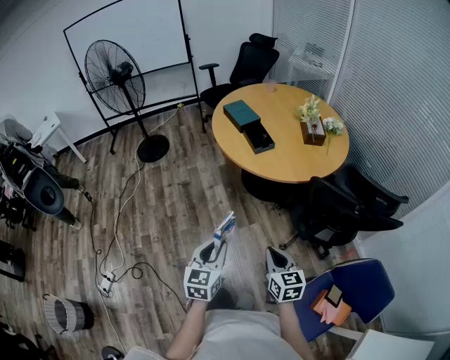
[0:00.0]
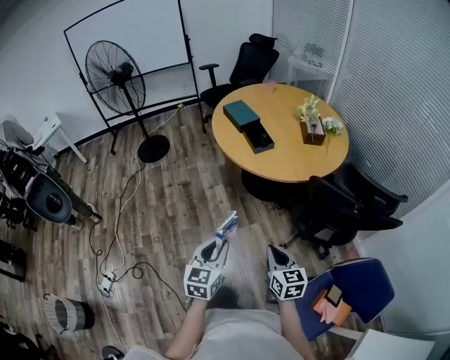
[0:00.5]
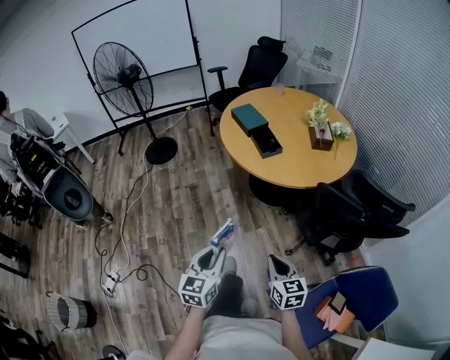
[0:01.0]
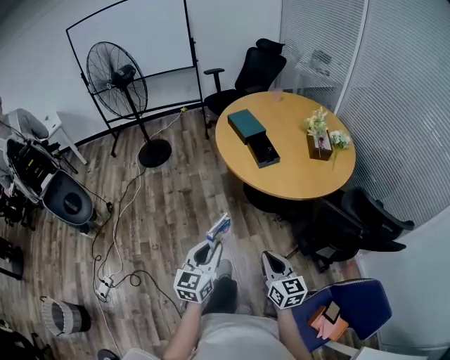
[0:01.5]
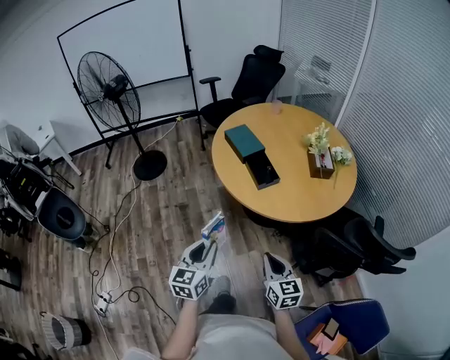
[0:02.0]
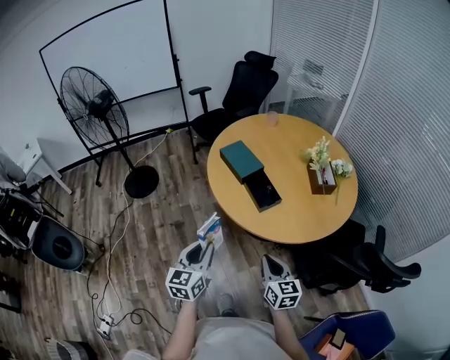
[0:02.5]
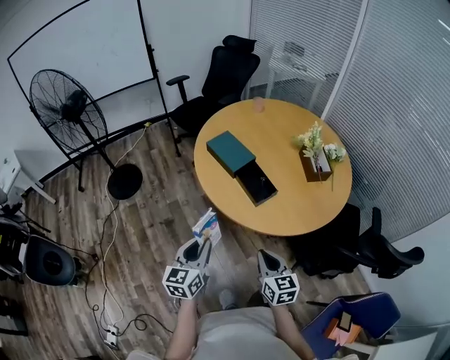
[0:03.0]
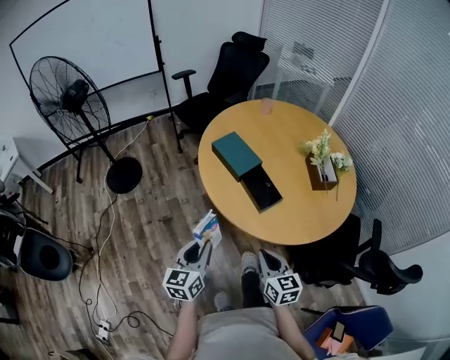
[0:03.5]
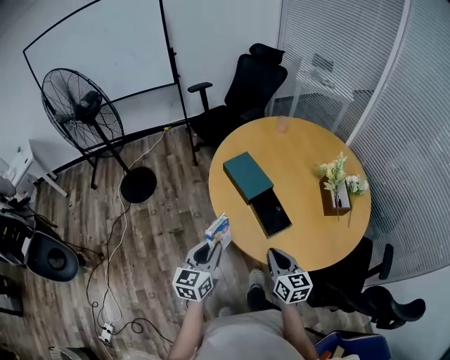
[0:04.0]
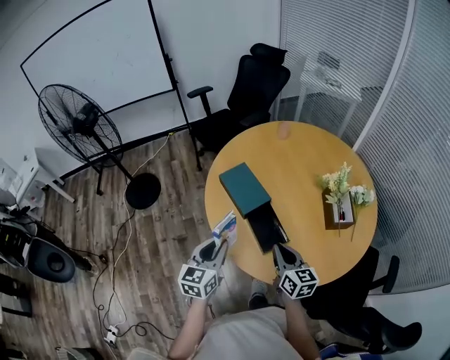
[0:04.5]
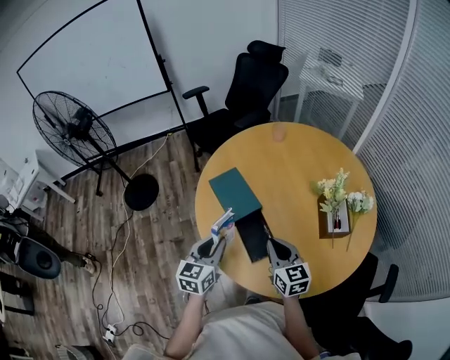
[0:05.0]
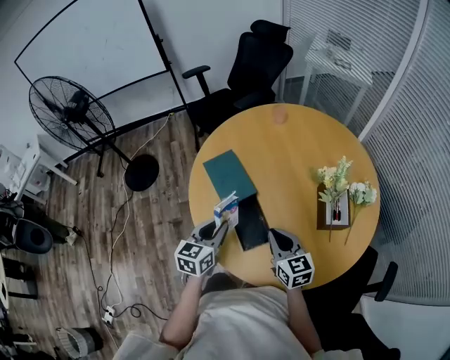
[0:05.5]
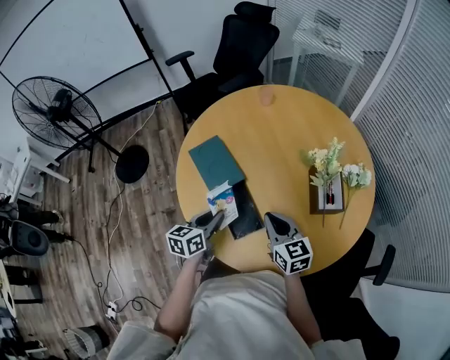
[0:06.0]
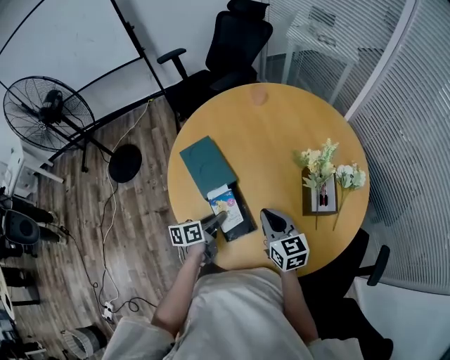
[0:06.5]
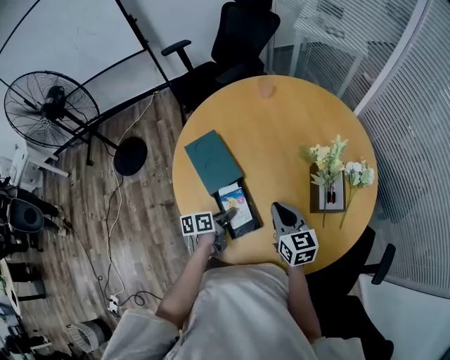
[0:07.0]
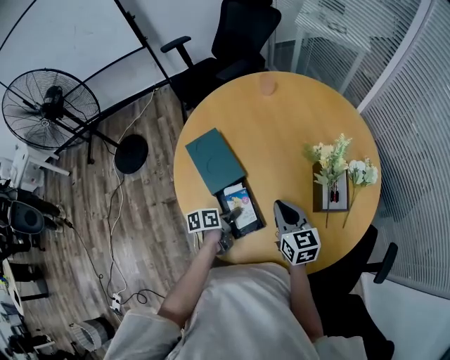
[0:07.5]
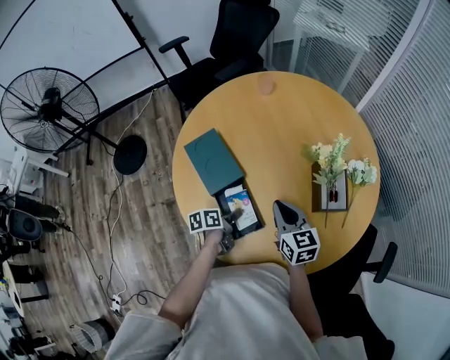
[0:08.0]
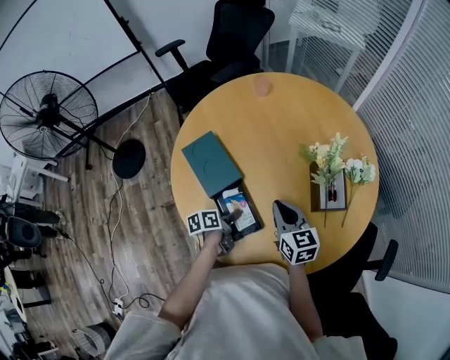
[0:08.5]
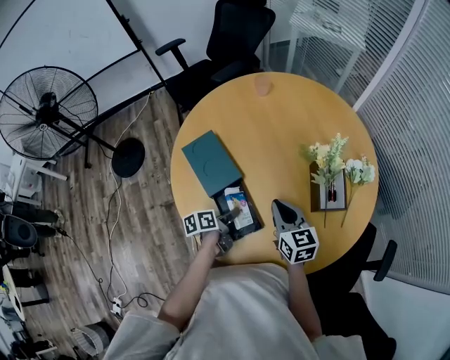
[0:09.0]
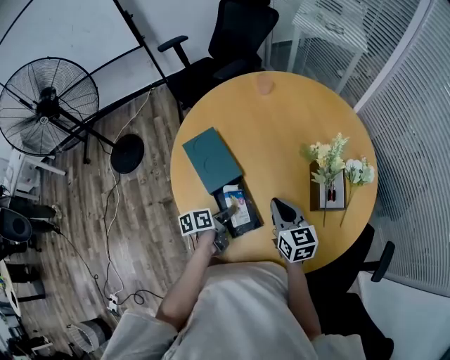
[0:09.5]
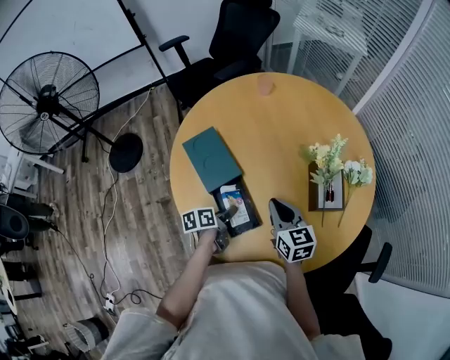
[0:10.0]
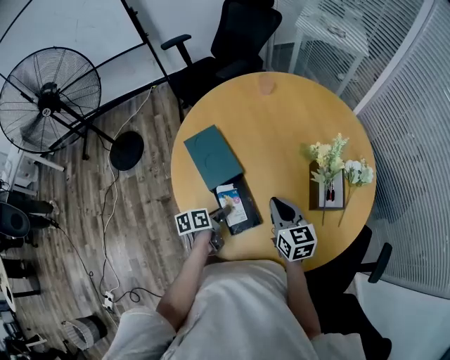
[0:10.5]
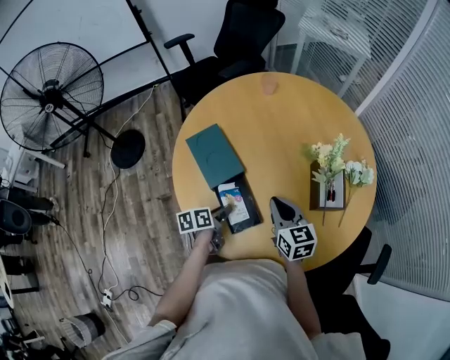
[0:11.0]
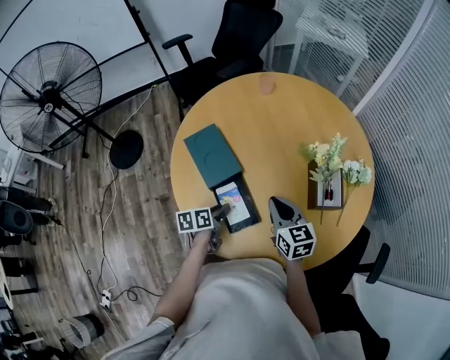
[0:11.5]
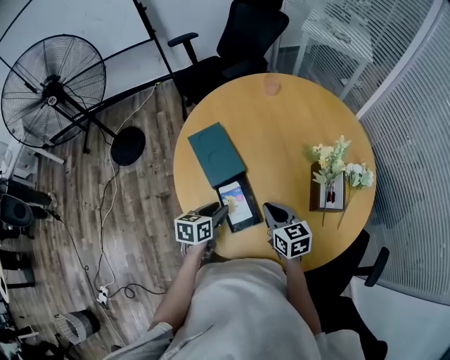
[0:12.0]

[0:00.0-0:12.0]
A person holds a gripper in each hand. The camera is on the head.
0:00.0 to 0:02.0: The grippers both shift forward by approximately 20 cm.
0:02.0 to 0:04.0: The grippers both shift forward by roughly 30 cm.
0:04.0 to 0:06.0: The left gripper travels to the right, forward and downward by approximately 25 cm, and changes its angle by approximately 20 degrees, while the right gripper moves forward and to the right, roughly 20 cm.
0:06.0 to 0:08.0: The left gripper goes some 15 cm downward, and turns by roughly 40 degrees; the right gripper heads forward, covering approximately 5 cm.
0:08.0 to 0:10.0: The grippers move only a little.
0:10.0 to 0:12.0: The left gripper moves upward, about 5 cm, and changes its angle by some 30 degrees.

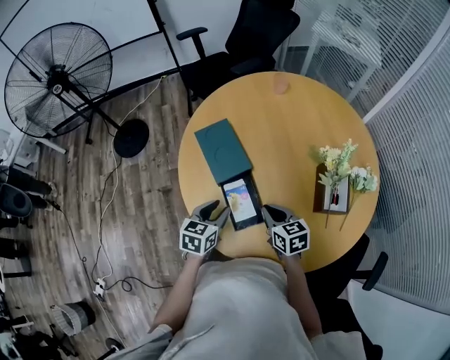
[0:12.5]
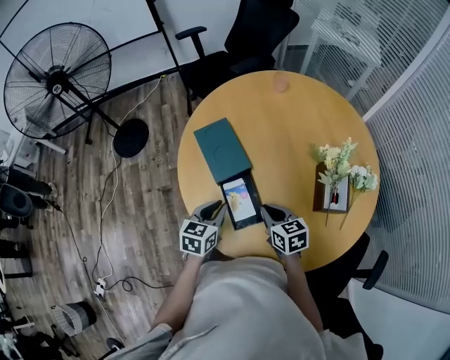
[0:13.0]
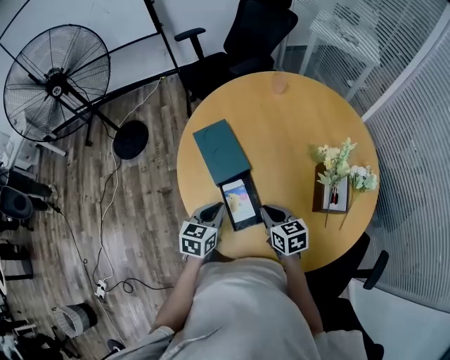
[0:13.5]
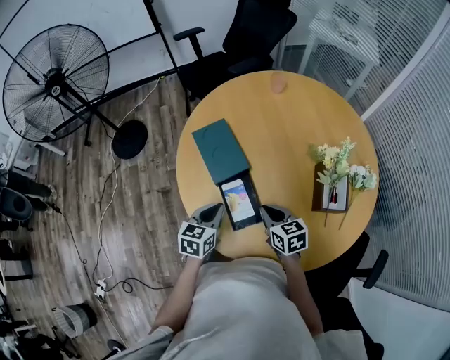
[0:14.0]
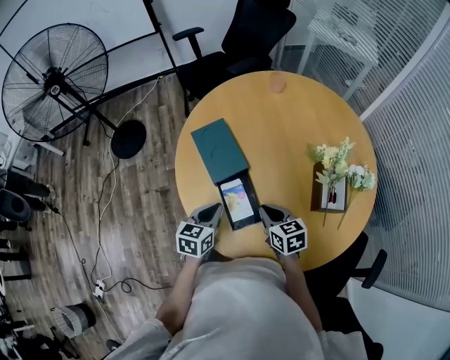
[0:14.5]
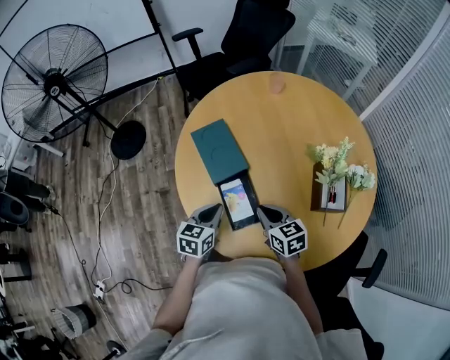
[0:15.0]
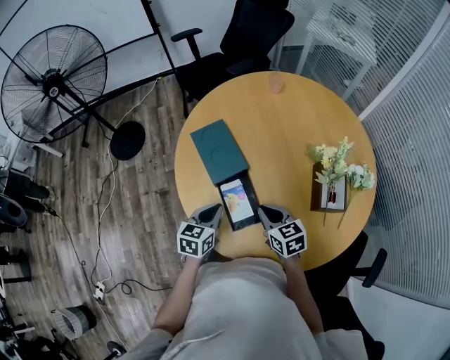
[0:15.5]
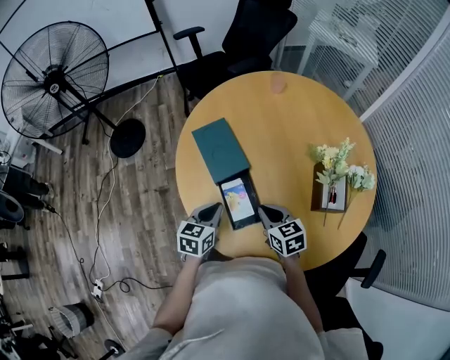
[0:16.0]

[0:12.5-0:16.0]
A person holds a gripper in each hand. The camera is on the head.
0:12.5 to 0:14.5: The left gripper closes up.
0:14.5 to 0:16.0: The grippers make only small movements.

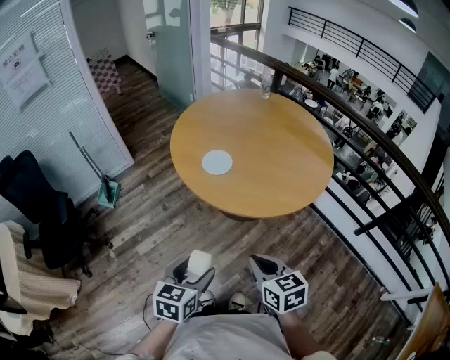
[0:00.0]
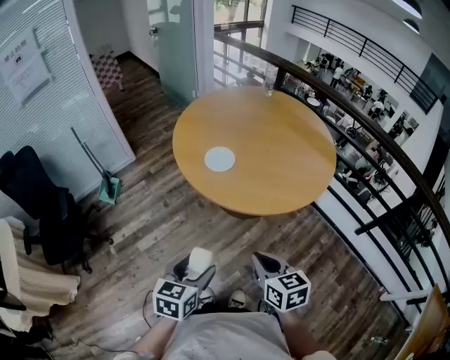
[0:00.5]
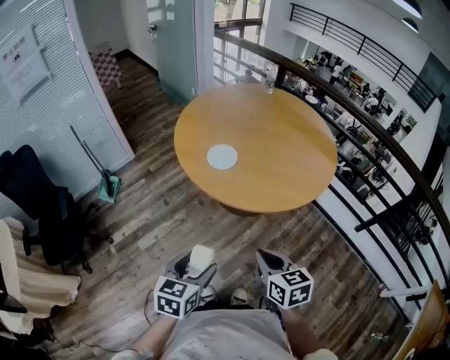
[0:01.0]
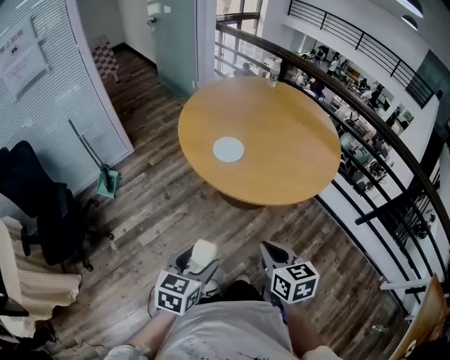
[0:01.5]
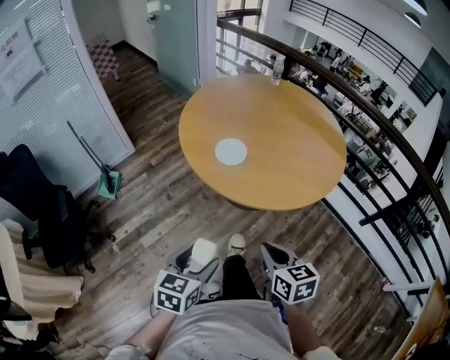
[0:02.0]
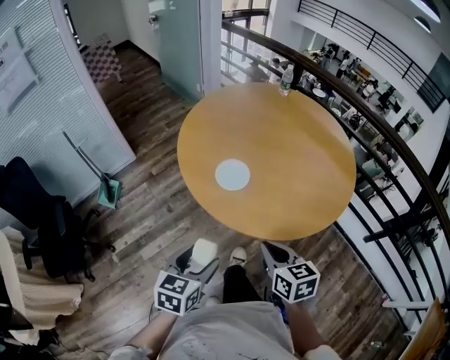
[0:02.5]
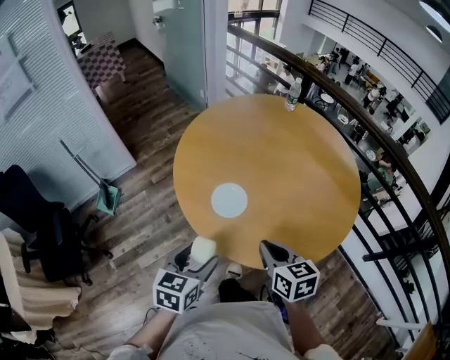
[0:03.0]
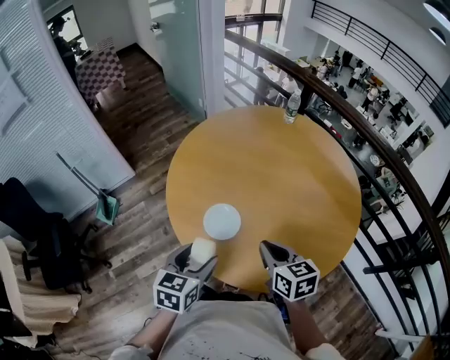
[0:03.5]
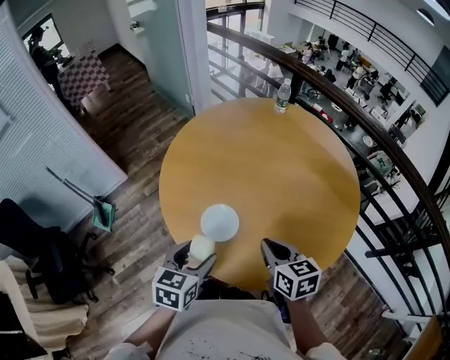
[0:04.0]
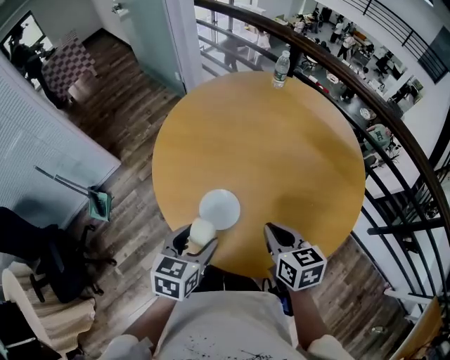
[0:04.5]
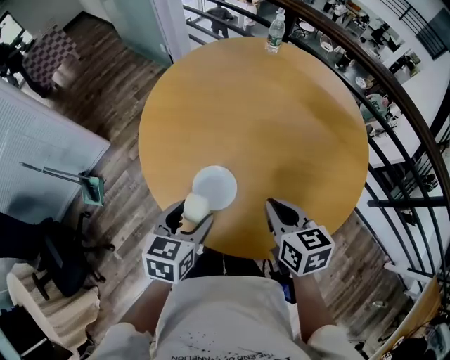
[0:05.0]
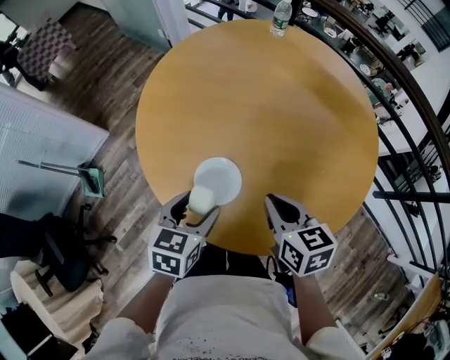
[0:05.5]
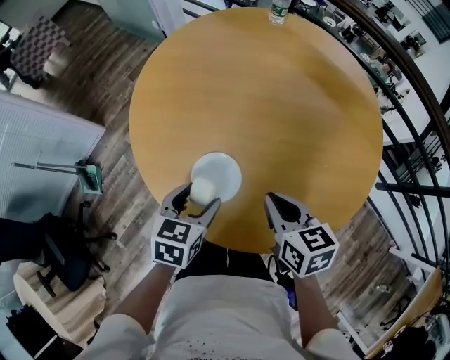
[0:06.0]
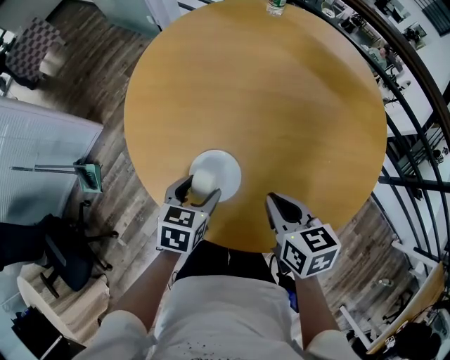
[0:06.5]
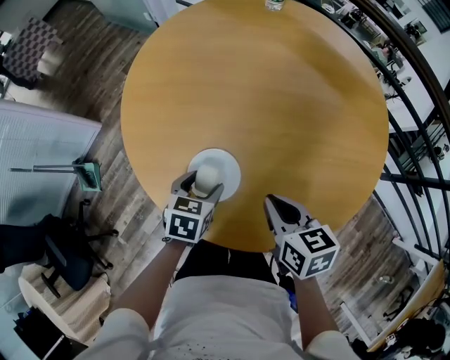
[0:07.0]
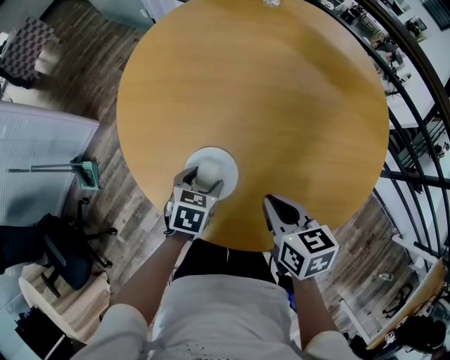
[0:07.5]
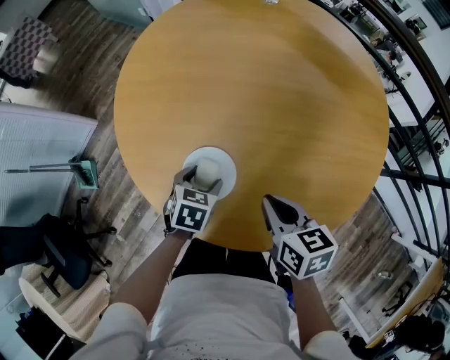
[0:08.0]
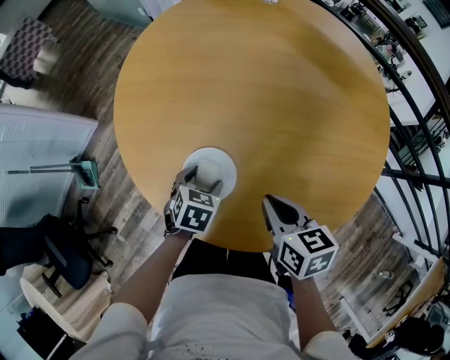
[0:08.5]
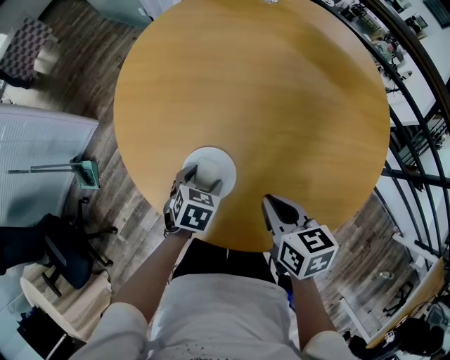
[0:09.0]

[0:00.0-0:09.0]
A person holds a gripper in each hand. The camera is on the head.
0:00.0 to 0:02.0: The left gripper goes about 5 cm to the left. Meanwhile the right gripper shifts by about 5 cm.
0:02.0 to 0:04.5: Both grippers travel together forward, roughly 40 cm.
0:04.5 to 0:07.0: The right gripper shifts roughly 10 cm downward; the left gripper shifts about 20 cm downward and forward.
0:07.0 to 0:09.0: There are only small adjustments of the grippers.

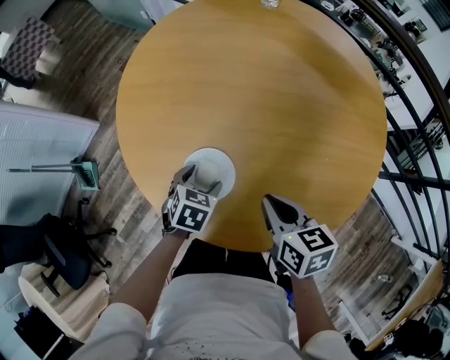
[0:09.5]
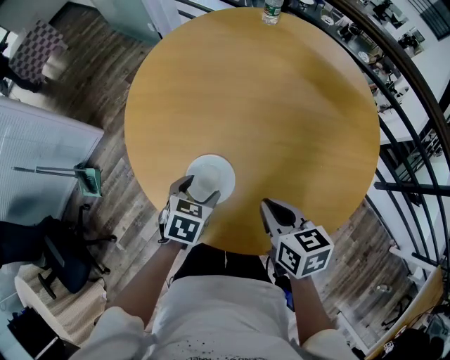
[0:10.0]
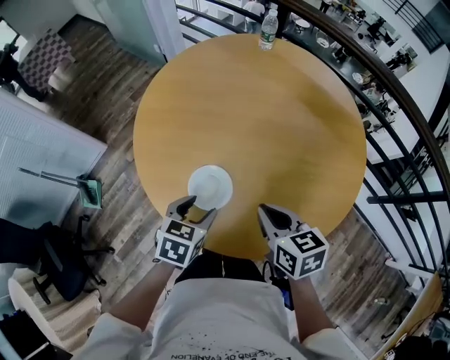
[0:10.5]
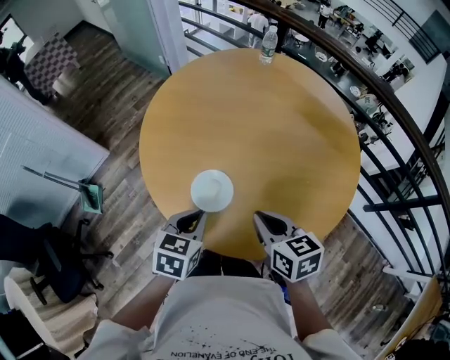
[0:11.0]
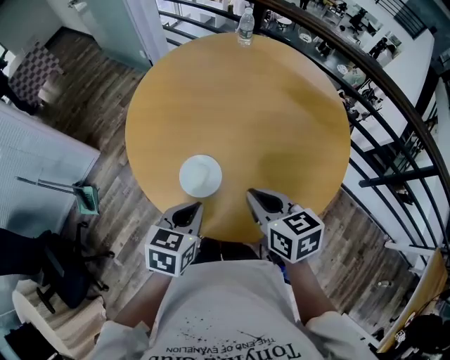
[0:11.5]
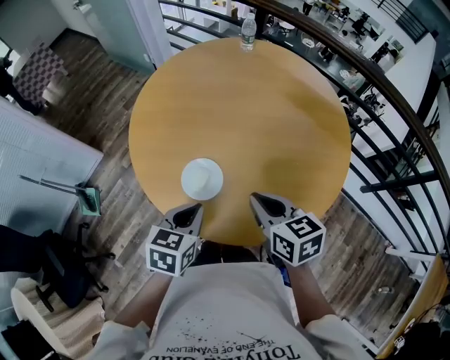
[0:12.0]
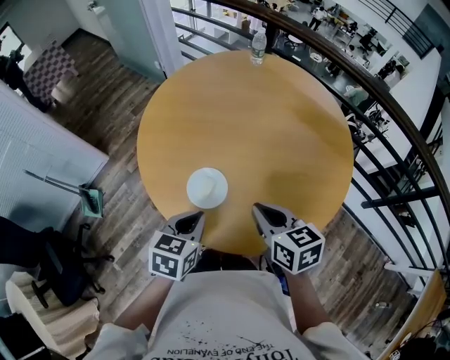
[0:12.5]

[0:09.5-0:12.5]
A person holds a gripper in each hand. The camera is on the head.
0:09.5 to 0:11.0: The left gripper travels upward and backward by some 20 cm, and closes its fingers; the right gripper is displaced upward by approximately 10 cm.
0:11.0 to 0:12.5: The grippers make only small movements.
